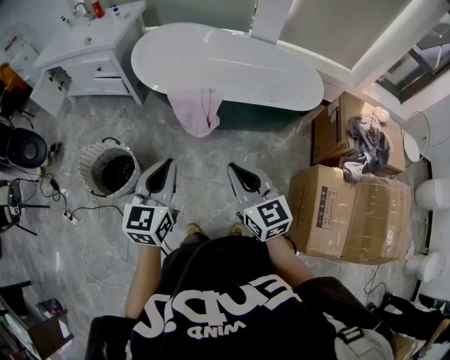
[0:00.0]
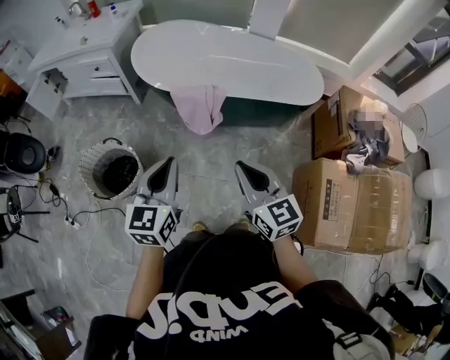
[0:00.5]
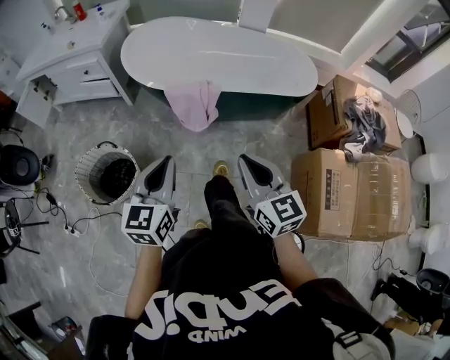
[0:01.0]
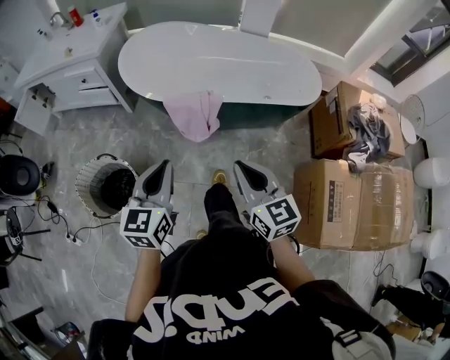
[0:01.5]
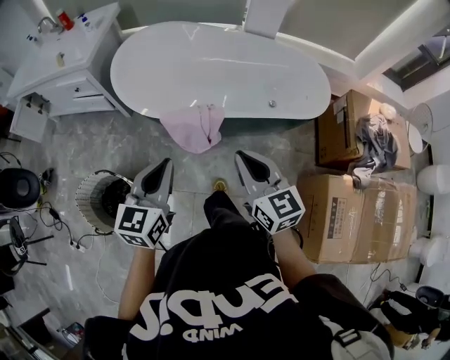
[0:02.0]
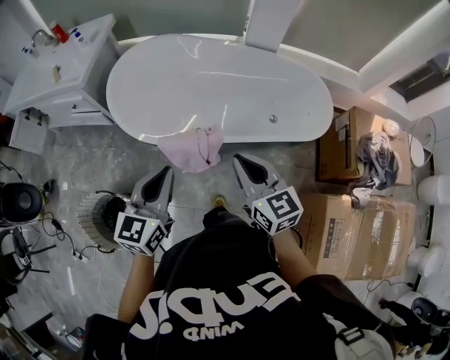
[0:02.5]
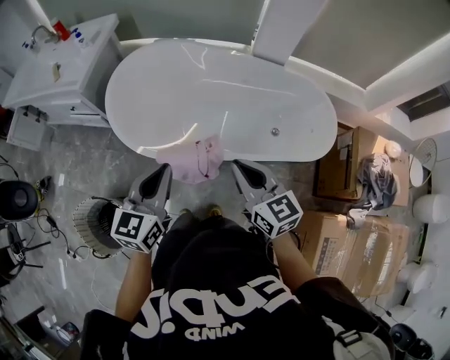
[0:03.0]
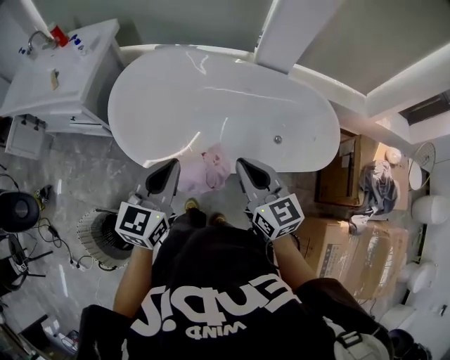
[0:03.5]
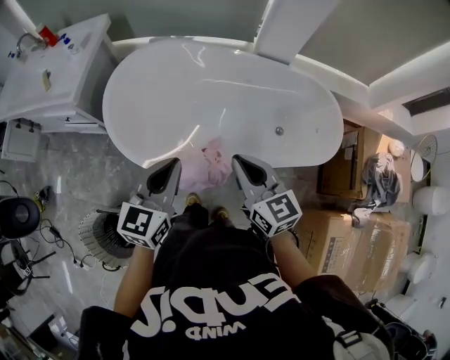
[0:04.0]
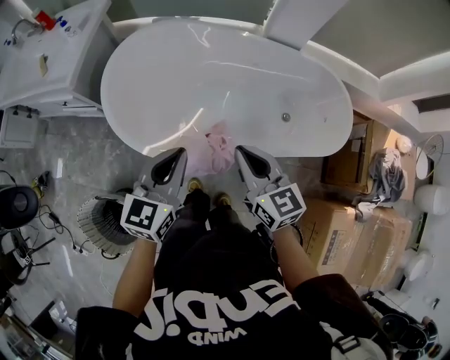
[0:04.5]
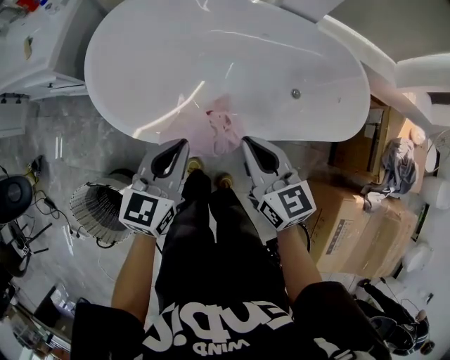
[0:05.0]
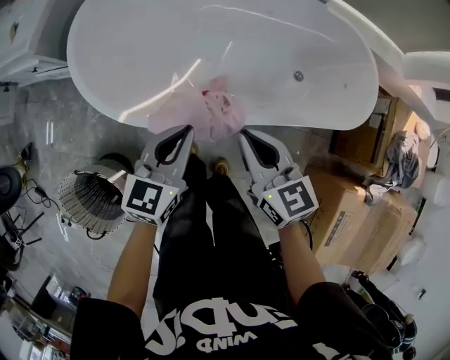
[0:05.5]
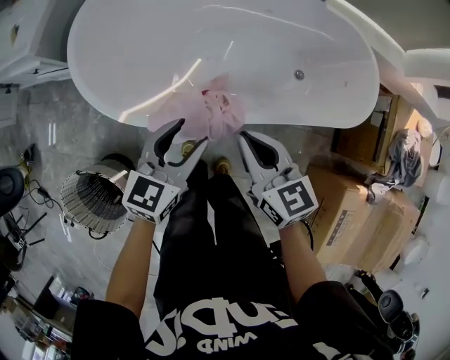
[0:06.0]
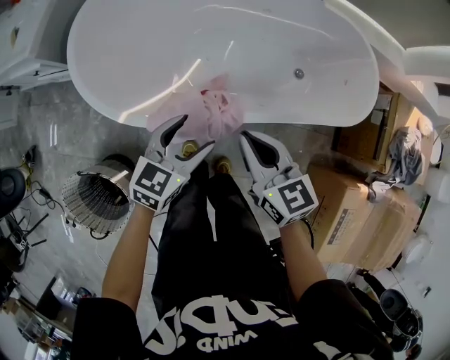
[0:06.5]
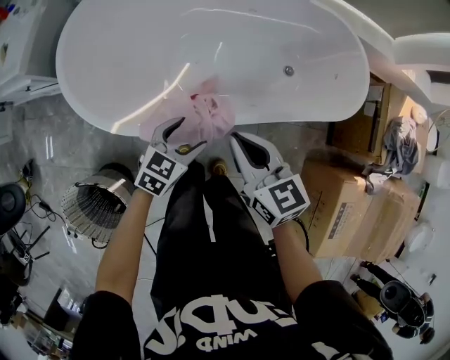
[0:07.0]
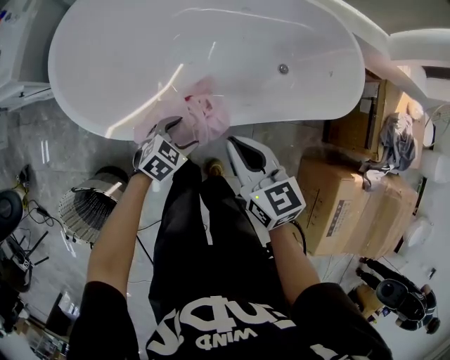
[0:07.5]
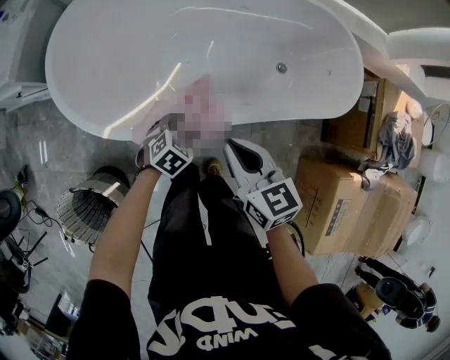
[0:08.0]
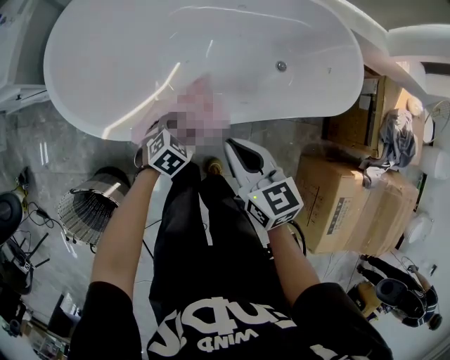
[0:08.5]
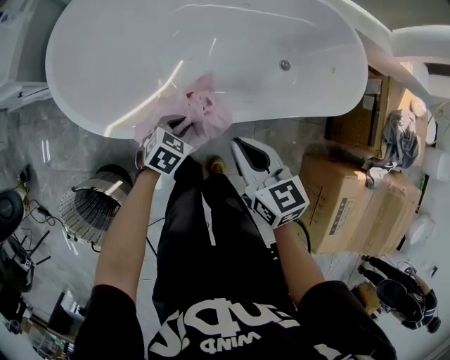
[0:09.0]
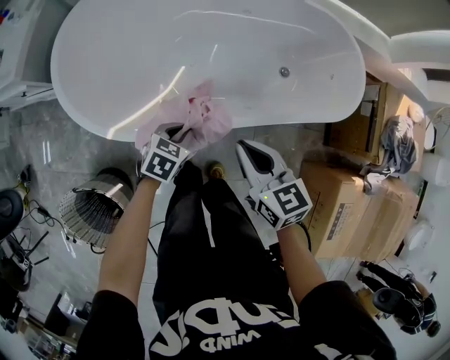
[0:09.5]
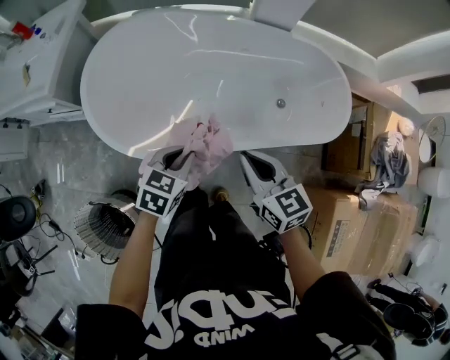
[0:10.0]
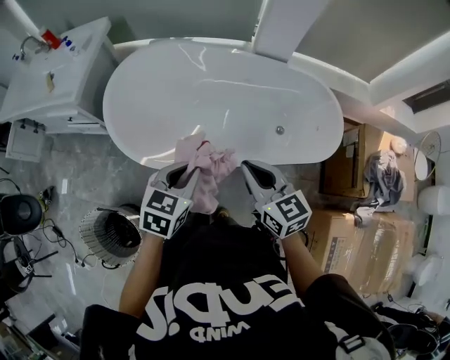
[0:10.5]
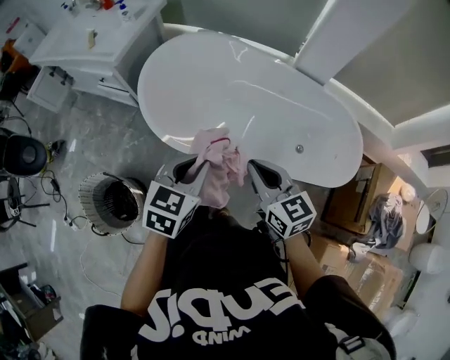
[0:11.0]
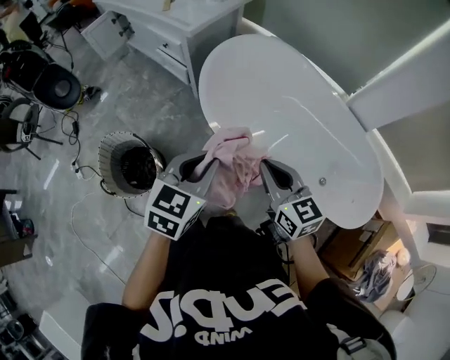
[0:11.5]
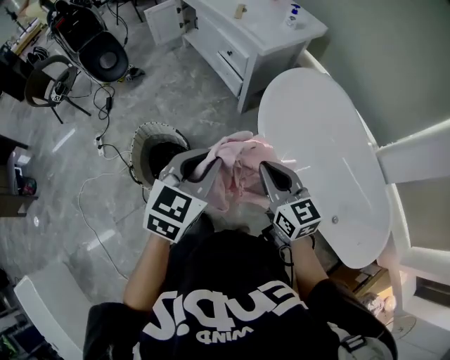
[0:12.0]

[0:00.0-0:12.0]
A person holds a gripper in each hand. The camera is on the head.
0:00.0 to 0:02.0: Both grippers travel together forward, some 20 cm.
0:02.0 to 0:04.0: Both grippers move forward, about 25 cm.
0:04.0 to 0:06.0: Both grippers travel together downward, roughly 15 cm. The left gripper opens up.
0:06.0 to 0:08.0: The left gripper travels downward by some 20 cm, and angles its fingers downward, by roughly 40 degrees.
0:08.0 to 0:10.0: The left gripper goes approximately 20 cm upward, changes its angle by roughly 20 degrees, and closes up. The right gripper goes roughly 10 cm upward.
0:10.0 to 0:12.0: The left gripper ends up approximately 40 cm from where it was, and turns by roughly 50 degrees. The right gripper changes place by roughly 35 cm, and turns by roughly 50 degrees.

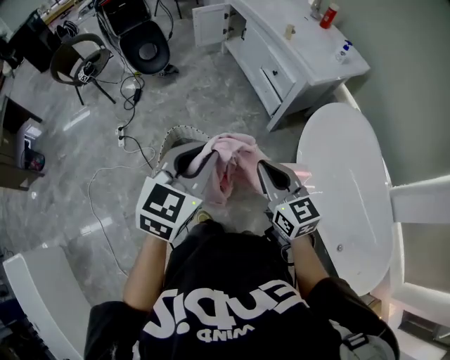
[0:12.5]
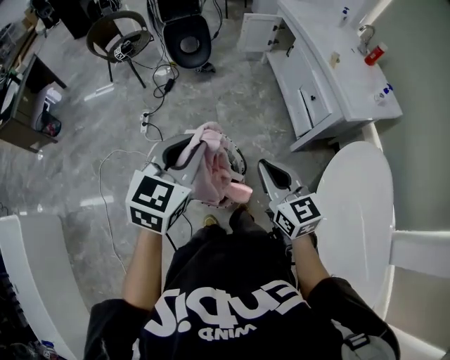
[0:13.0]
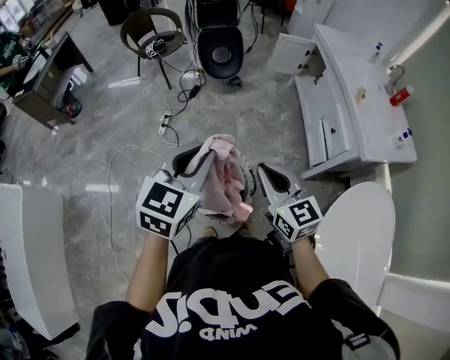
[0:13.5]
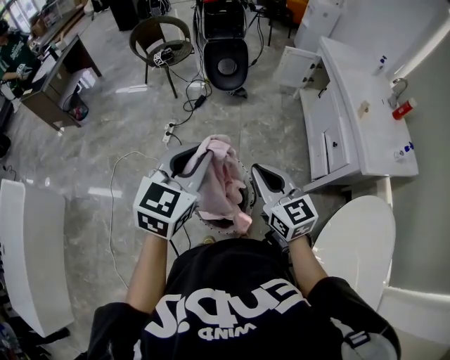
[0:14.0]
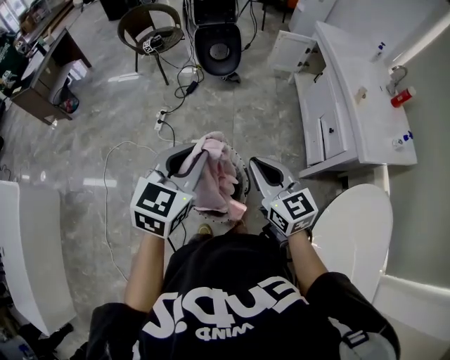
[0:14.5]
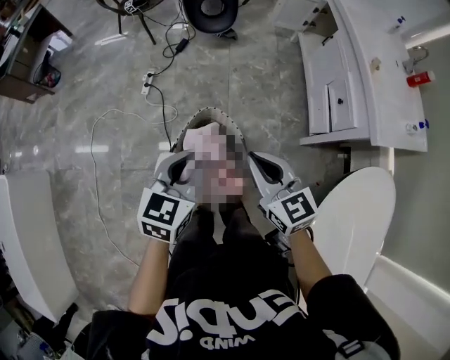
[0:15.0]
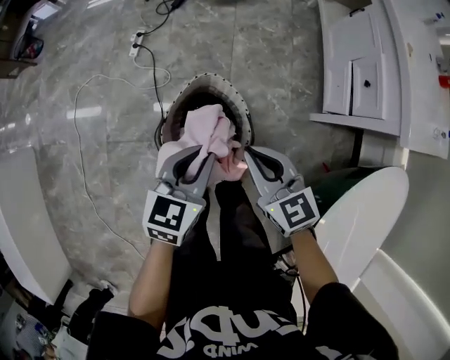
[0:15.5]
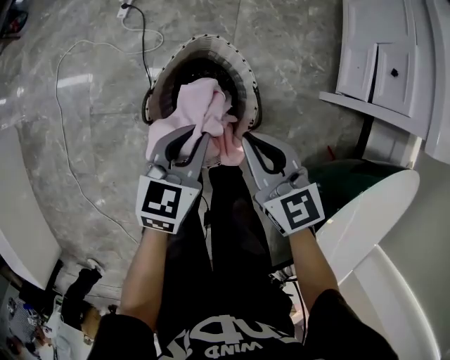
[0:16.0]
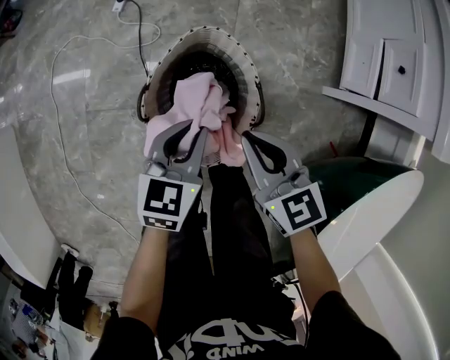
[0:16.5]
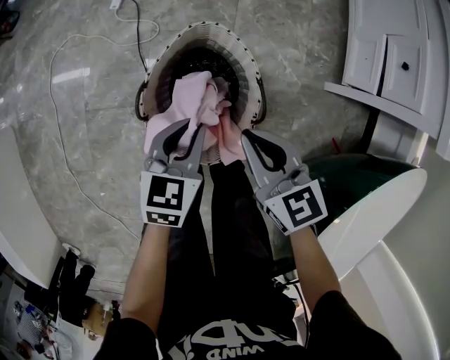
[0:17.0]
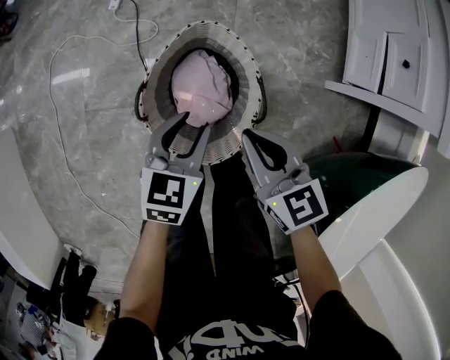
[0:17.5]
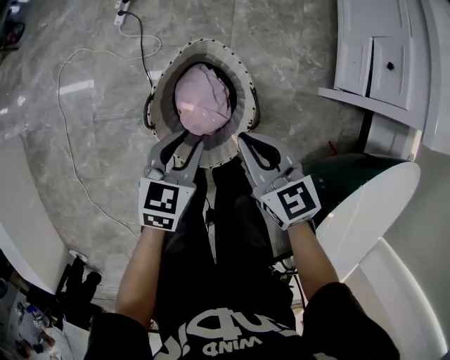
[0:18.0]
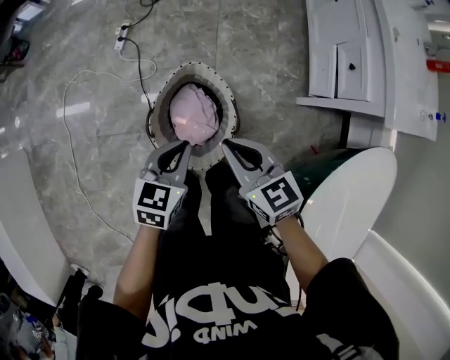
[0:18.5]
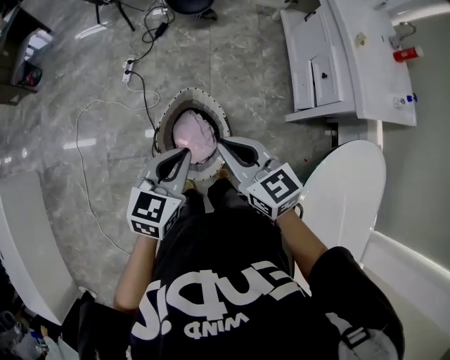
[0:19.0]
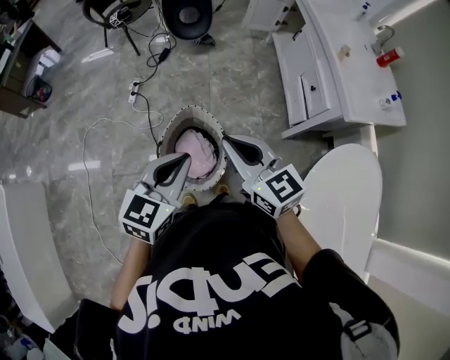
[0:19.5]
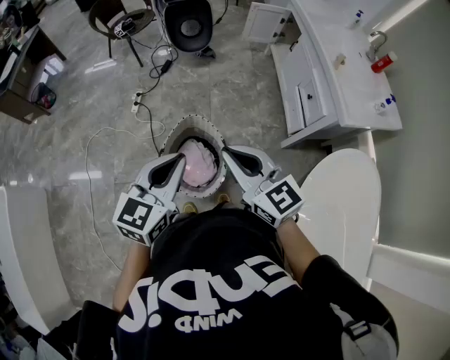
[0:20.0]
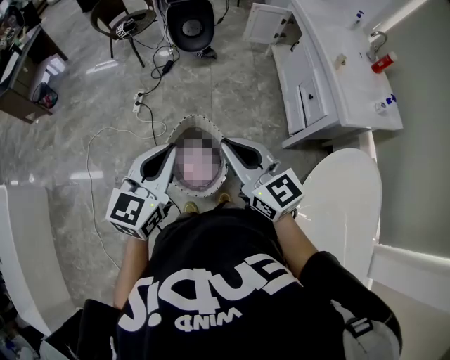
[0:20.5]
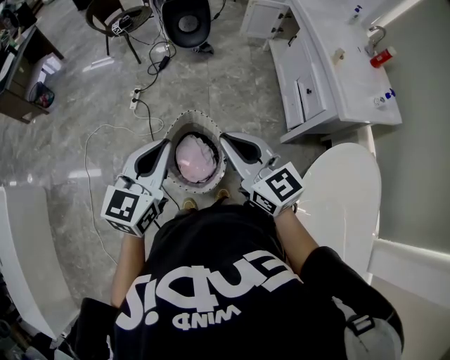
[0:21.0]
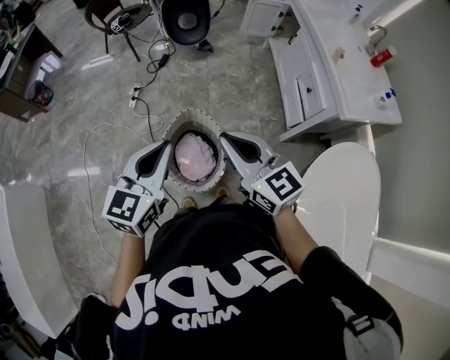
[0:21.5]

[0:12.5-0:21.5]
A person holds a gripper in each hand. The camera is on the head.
0:12.5 to 0:14.5: The left gripper shifts by roughly 20 cm, and changes its angle by approximately 30 degrees. The right gripper shifts by some 20 cm, and changes its angle by some 30 degrees.
0:14.5 to 0:17.0: Both grippers move downward, about 40 cm. The left gripper rotates roughly 30 degrees; the right gripper rotates some 20 degrees.
0:17.0 to 0:19.5: The grippers both shift upward by approximately 35 cm. The left gripper changes its angle by approximately 30 degrees, while the right gripper swivels about 20 degrees.
0:19.5 to 0:21.5: The left gripper shifts by some 5 cm.

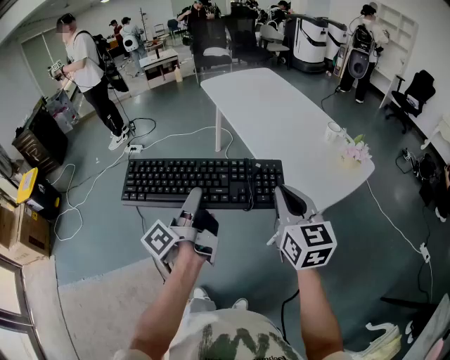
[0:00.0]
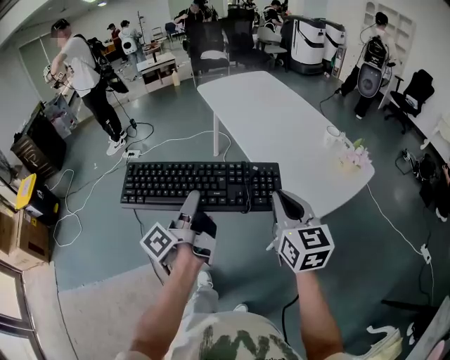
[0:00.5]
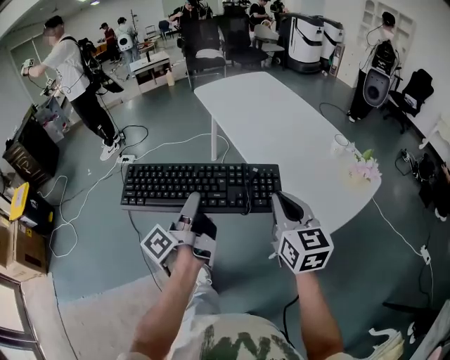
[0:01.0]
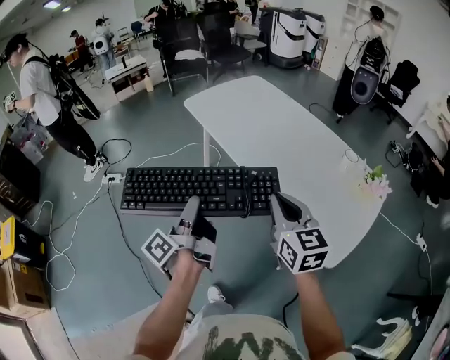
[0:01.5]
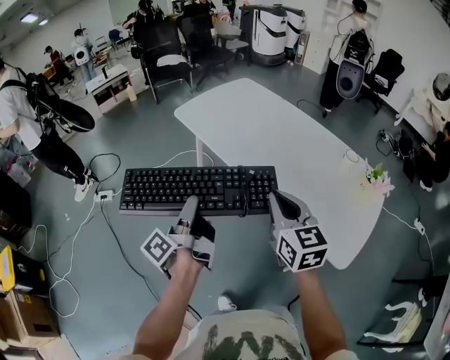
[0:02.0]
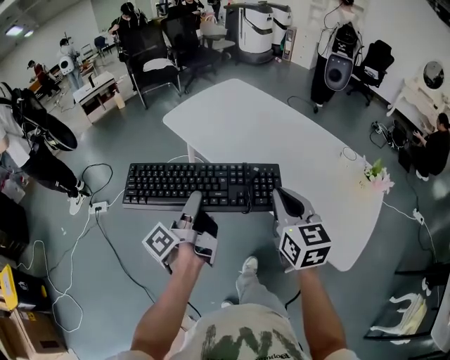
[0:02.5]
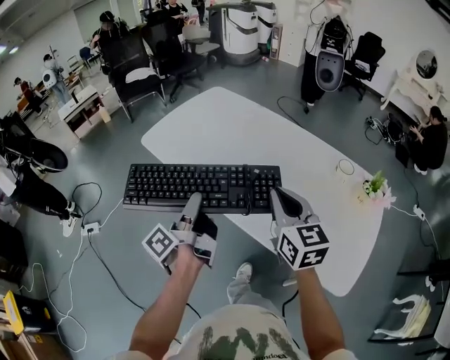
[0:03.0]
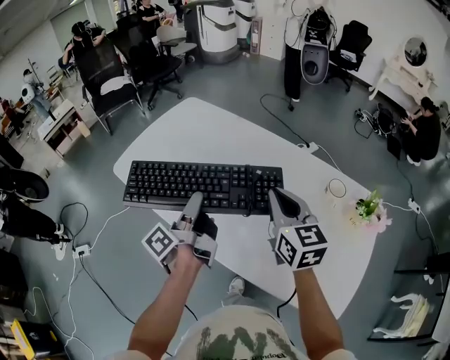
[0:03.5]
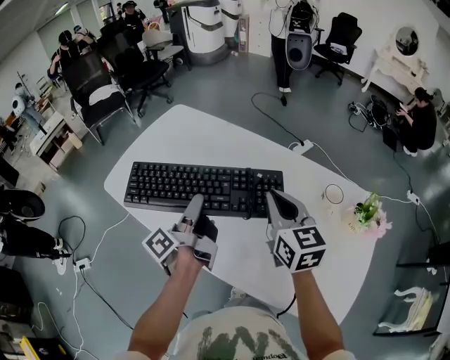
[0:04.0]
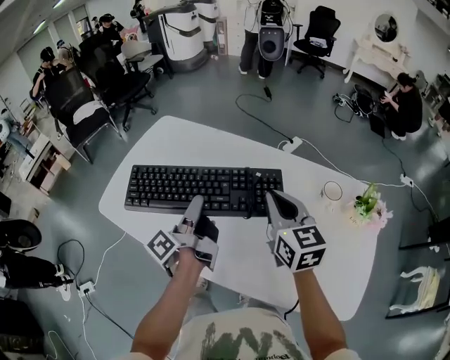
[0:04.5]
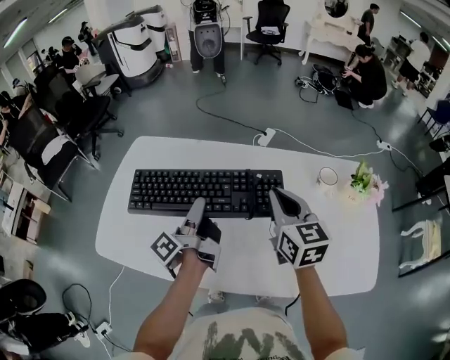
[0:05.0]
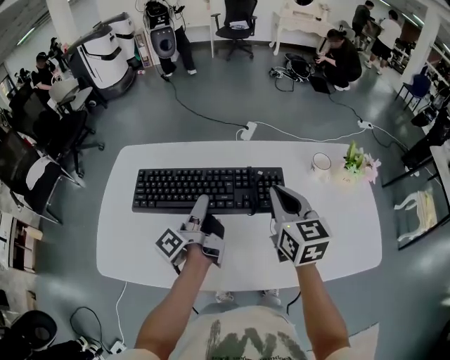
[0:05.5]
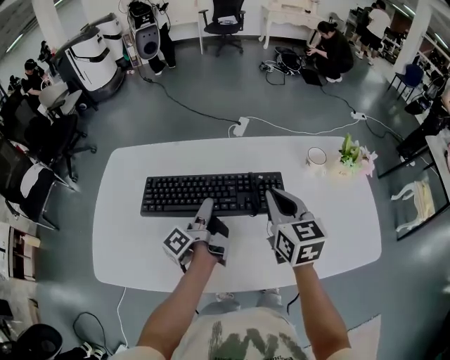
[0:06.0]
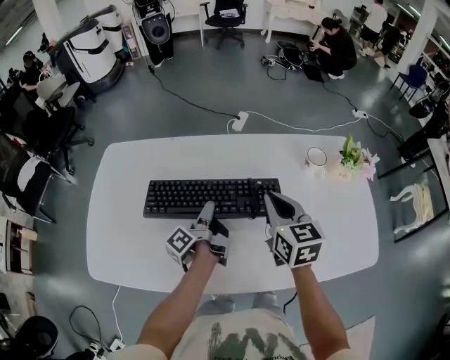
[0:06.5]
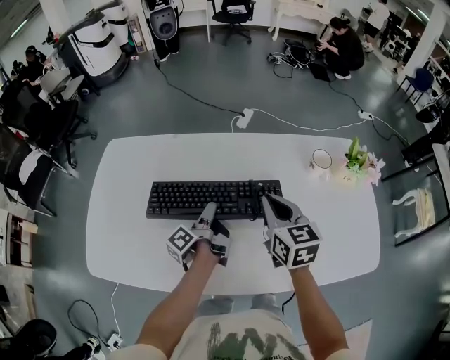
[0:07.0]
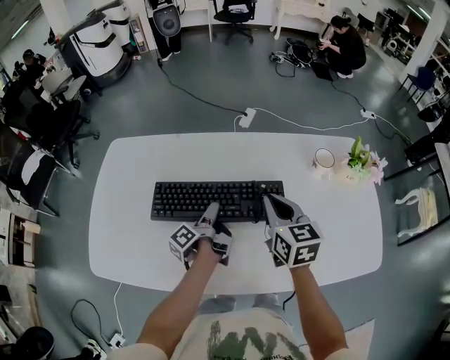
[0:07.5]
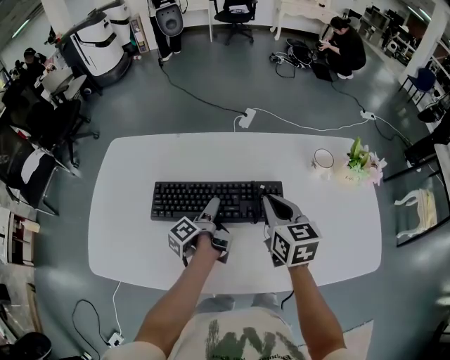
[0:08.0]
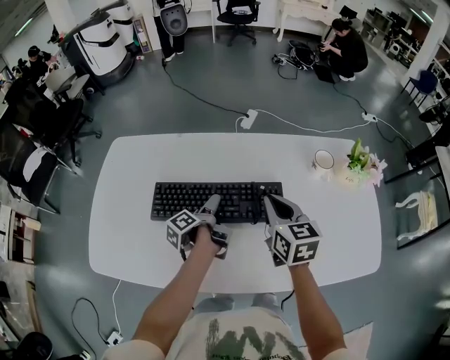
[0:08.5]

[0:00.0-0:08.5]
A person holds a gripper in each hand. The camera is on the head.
0:00.0 to 0:02.0: The right gripper shifts by about 35 cm.
0:02.0 to 0:04.0: The right gripper ends up roughly 35 cm from where it was.
0:04.0 to 0:06.5: The right gripper heads downward, covering roughly 5 cm, and changes its angle by roughly 30 degrees.
